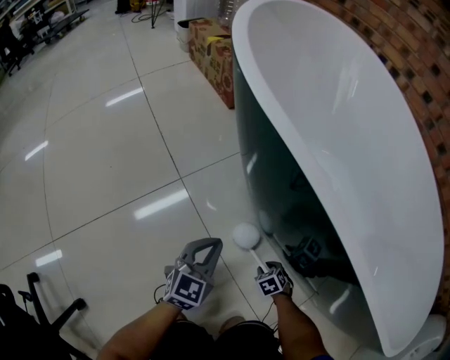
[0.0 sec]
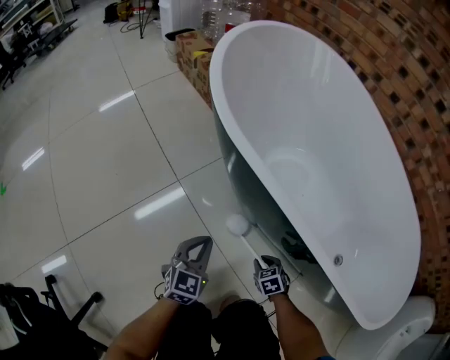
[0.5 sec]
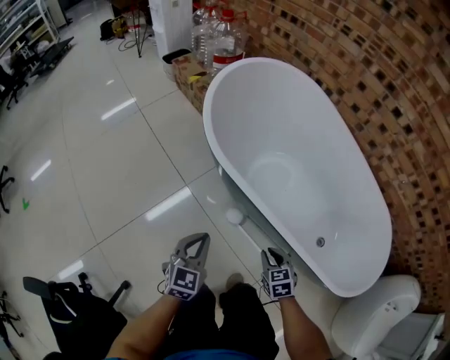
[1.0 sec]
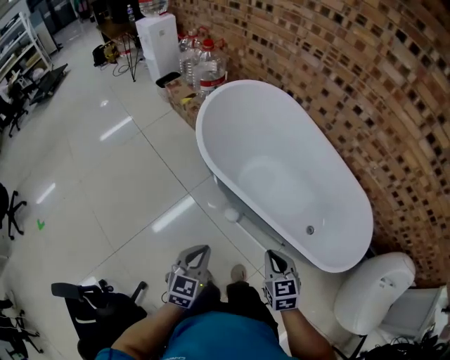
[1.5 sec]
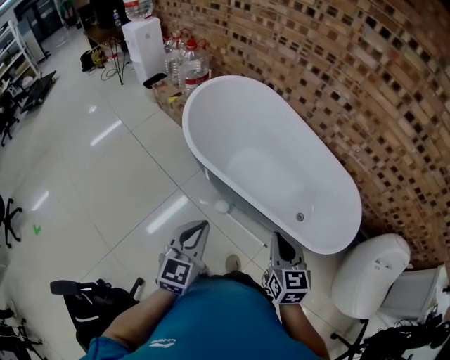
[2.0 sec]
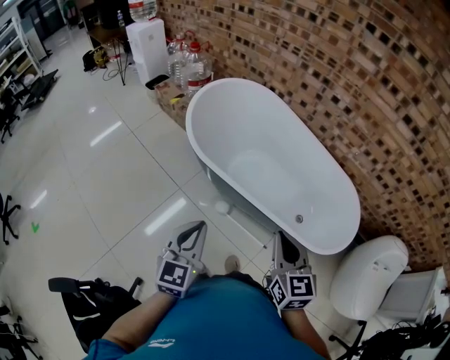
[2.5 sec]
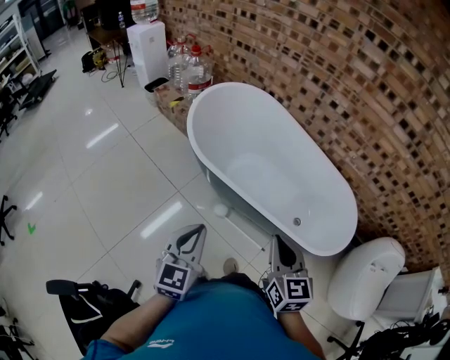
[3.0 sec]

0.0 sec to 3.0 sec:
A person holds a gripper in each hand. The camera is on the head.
0.0 sec to 1.5 sec: Both grippers travel together upward, some 70 cm. The right gripper tips its fingers upward by roughly 40 degrees, and closes.
1.5 sec to 3.0 sec: The two grippers go about 15 cm upward. The right gripper turns by about 20 degrees.

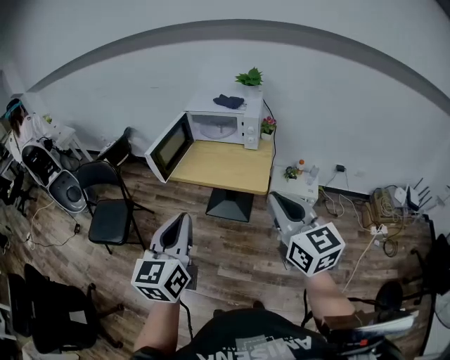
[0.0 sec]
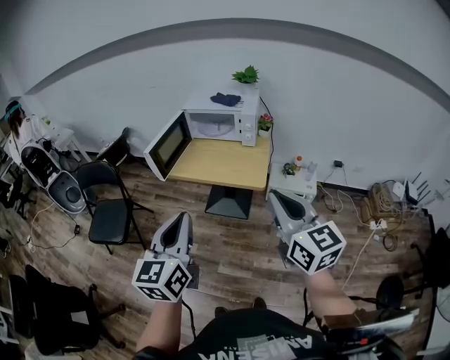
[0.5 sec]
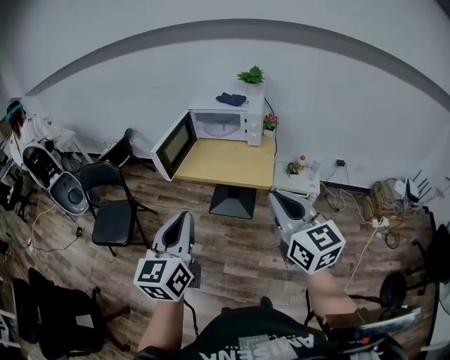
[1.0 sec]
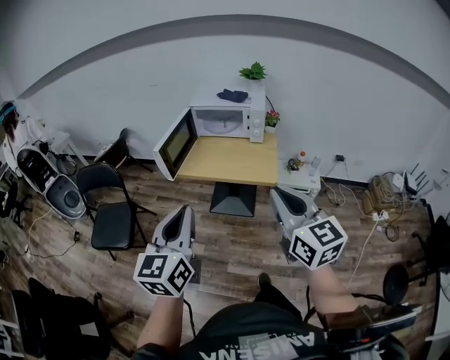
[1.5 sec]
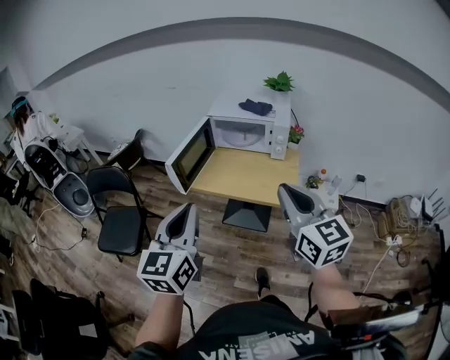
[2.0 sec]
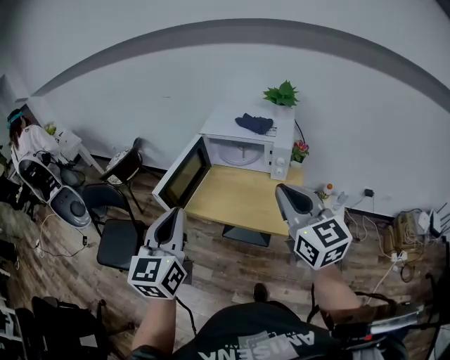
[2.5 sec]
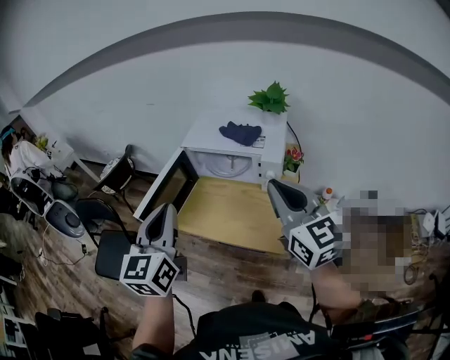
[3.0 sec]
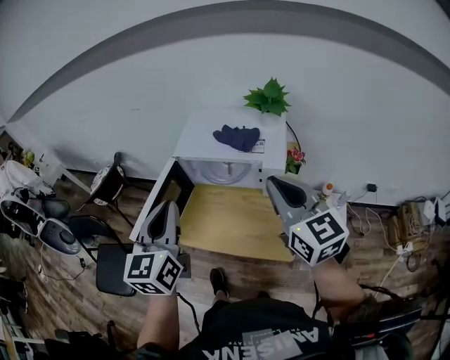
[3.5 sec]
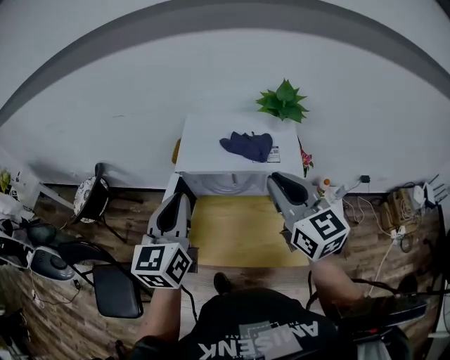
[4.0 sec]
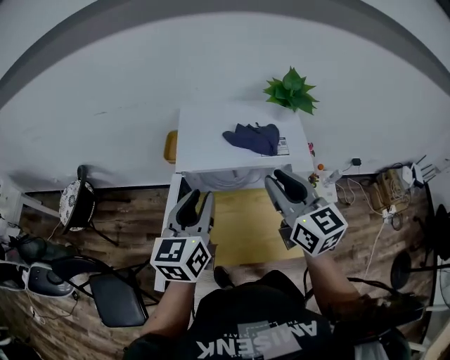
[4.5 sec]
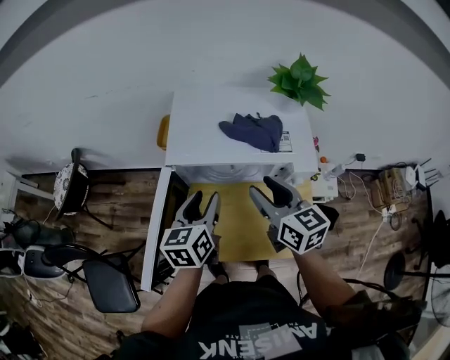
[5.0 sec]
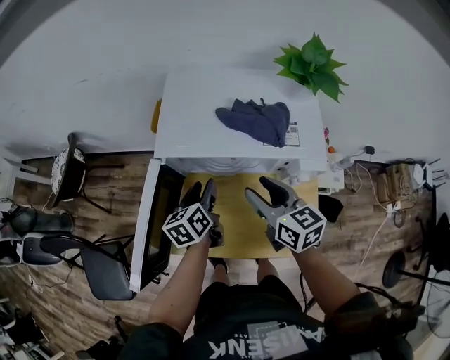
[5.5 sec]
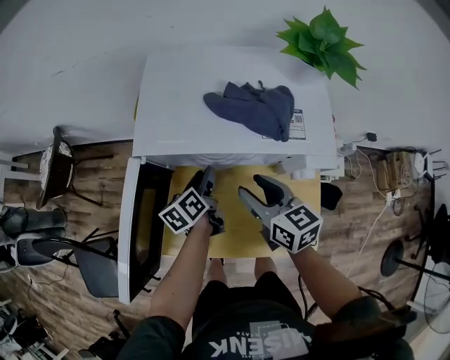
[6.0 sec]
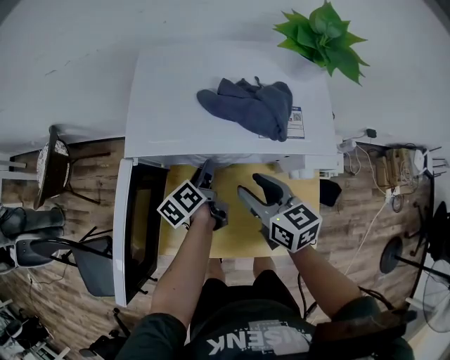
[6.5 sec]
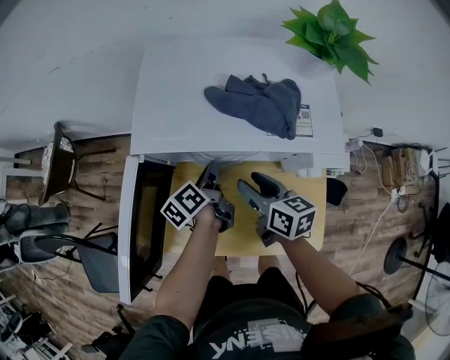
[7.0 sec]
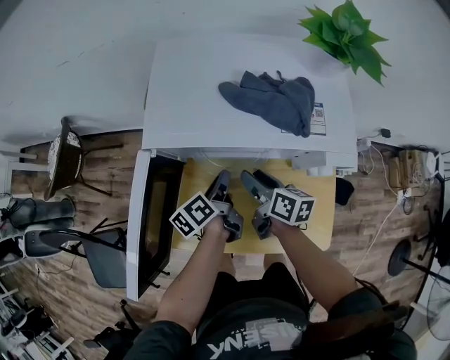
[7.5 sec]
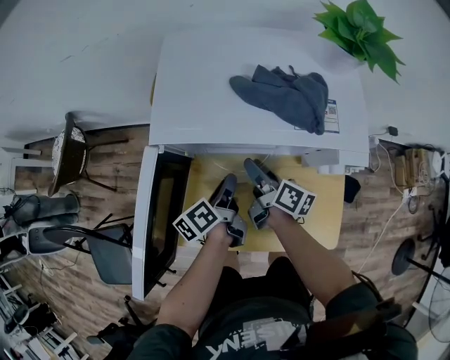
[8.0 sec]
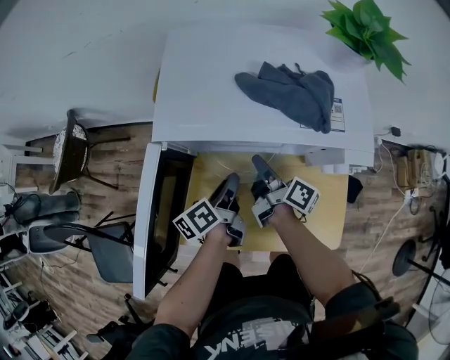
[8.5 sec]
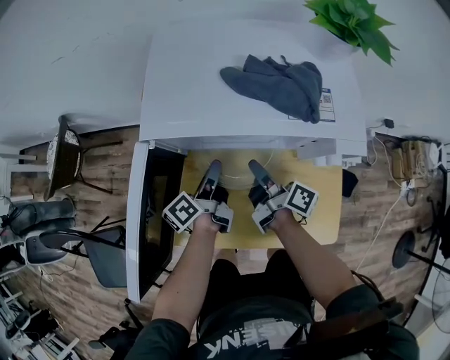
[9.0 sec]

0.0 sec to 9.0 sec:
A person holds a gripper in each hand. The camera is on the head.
0.0 sec to 2.0 sec: The two grippers go roughly 15 cm forward and to the left.
2.0 sec to 4.5 sec: The two grippers travel together, forward, roughly 50 cm. The left gripper rotates some 20 degrees, and opens its fingers.
4.5 sec to 7.0 sec: Both grippers move downward, about 30 cm. The left gripper rolls counterclockwise, seen from behind, by about 50 degrees; the right gripper rotates some 40 degrees, and opens up.
7.0 sec to 9.0 sec: The right gripper rotates around the line of its fingers by roughly 40 degrees, clockwise from behind, and closes.

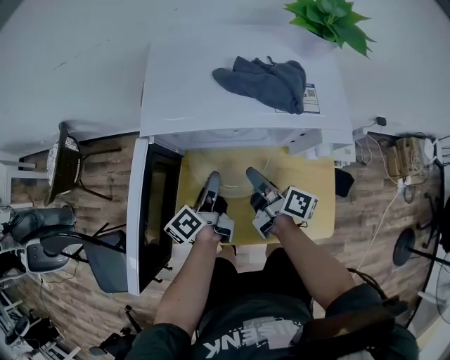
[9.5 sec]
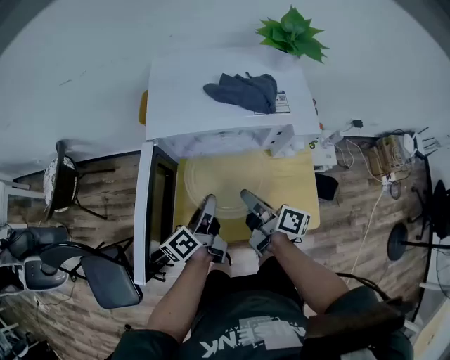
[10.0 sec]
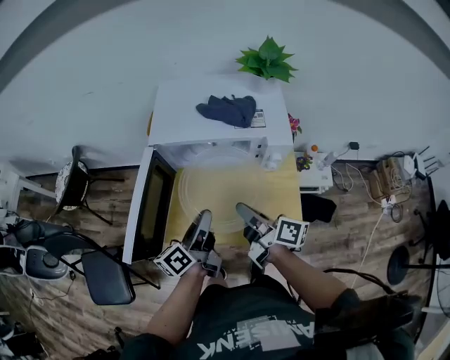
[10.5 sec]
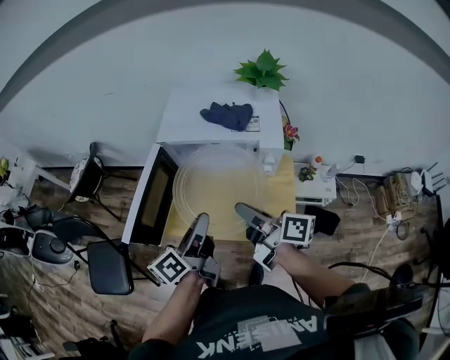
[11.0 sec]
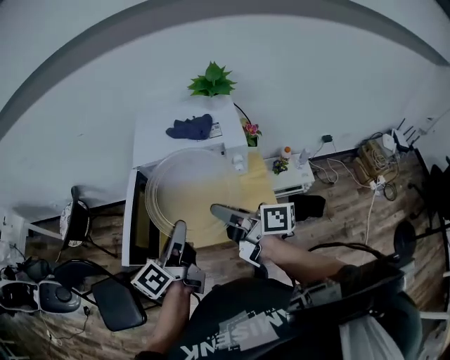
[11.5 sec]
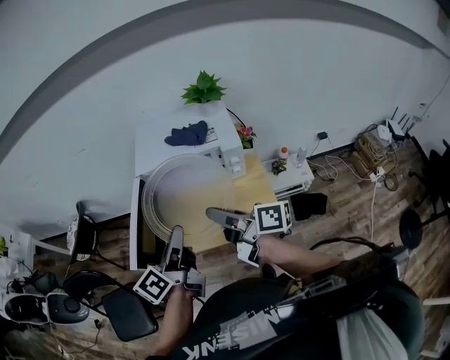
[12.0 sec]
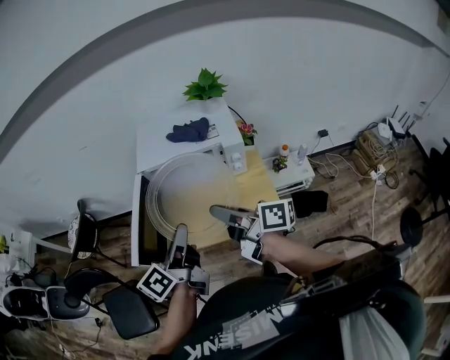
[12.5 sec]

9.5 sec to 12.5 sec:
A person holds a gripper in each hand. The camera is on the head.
9.5 sec to 11.0 sec: The left gripper heads backward and upward, covering approximately 30 cm, while the right gripper heads upward and backward, covering about 30 cm, and rotates approximately 20 degrees.
11.0 sec to 12.5 sec: The left gripper heads upward, covering some 10 cm. The right gripper moves upward, approximately 5 cm.

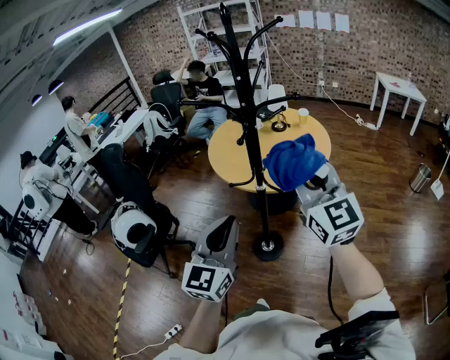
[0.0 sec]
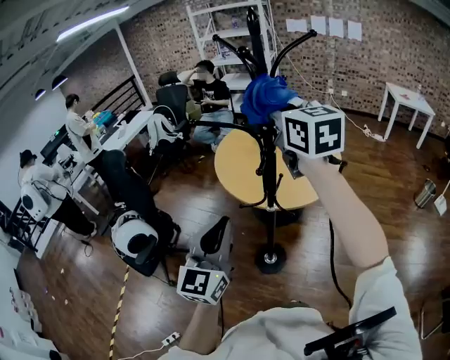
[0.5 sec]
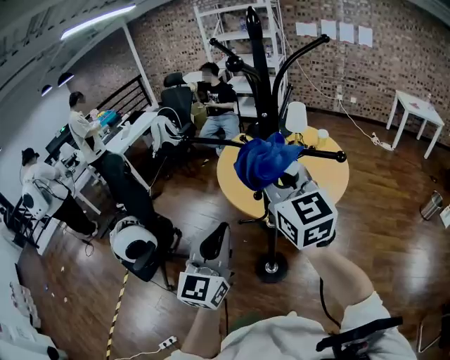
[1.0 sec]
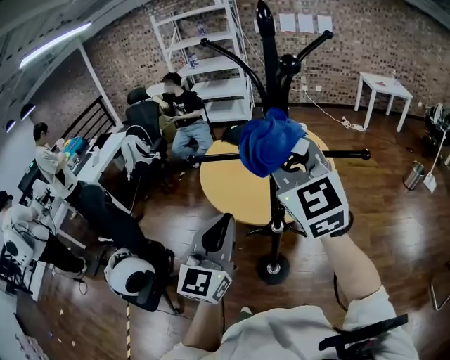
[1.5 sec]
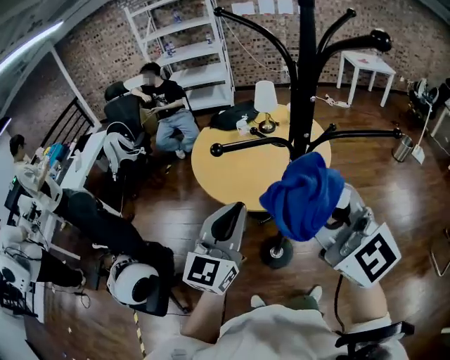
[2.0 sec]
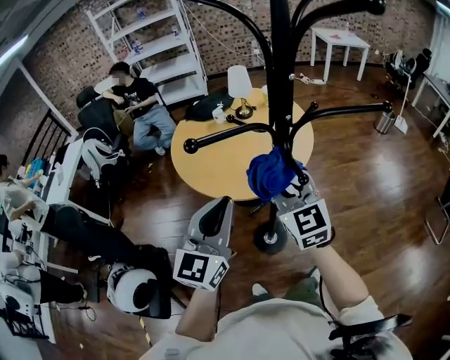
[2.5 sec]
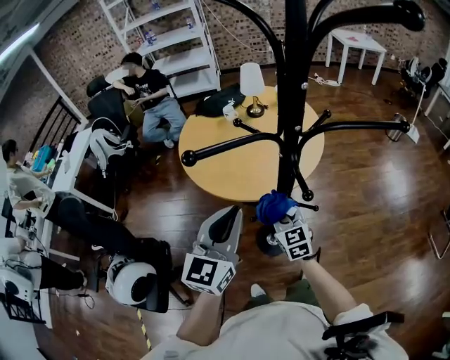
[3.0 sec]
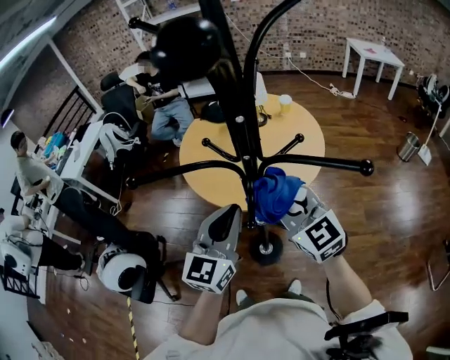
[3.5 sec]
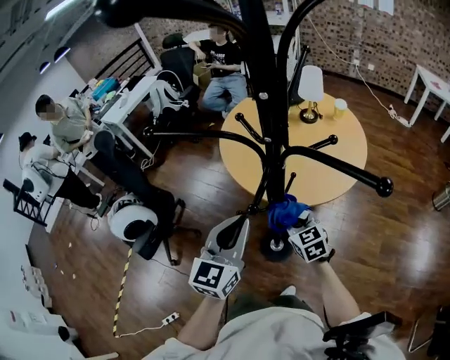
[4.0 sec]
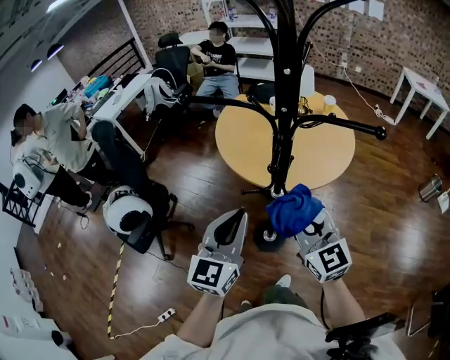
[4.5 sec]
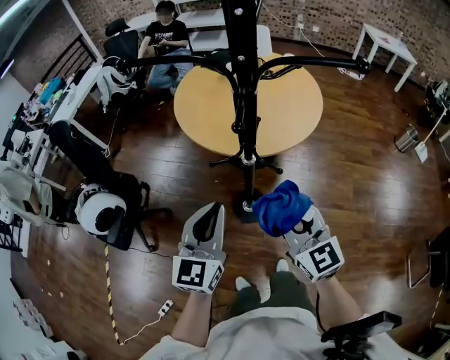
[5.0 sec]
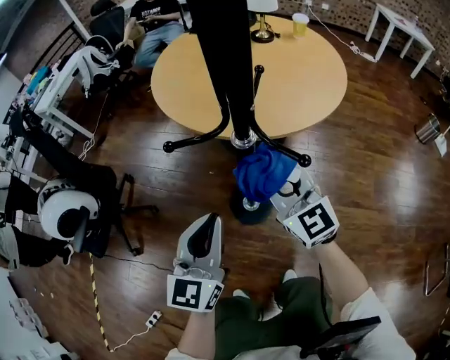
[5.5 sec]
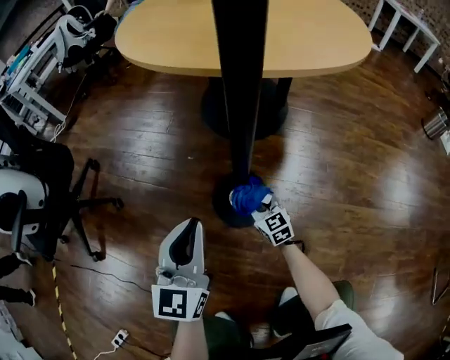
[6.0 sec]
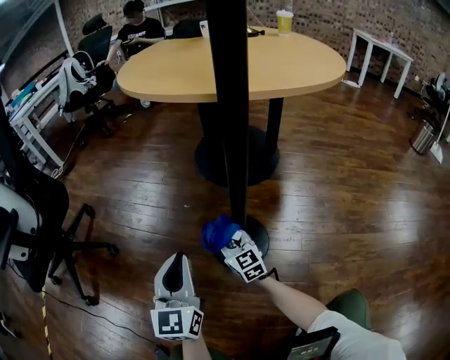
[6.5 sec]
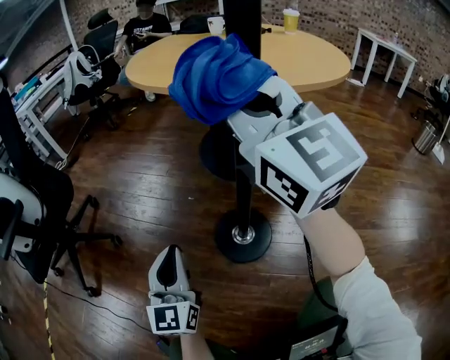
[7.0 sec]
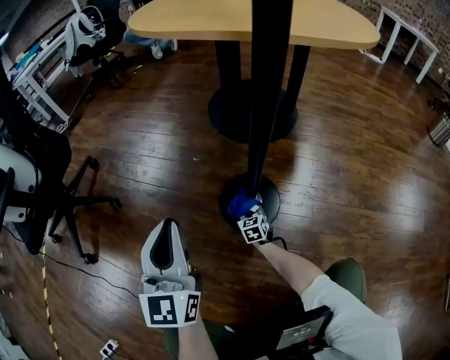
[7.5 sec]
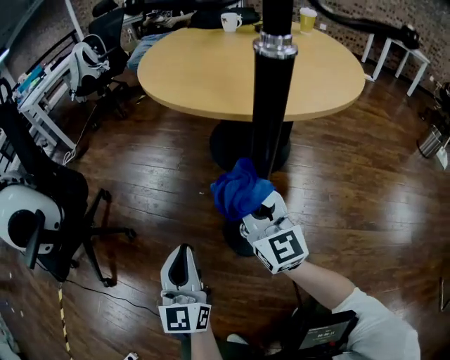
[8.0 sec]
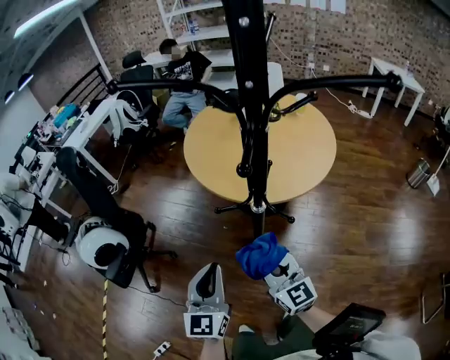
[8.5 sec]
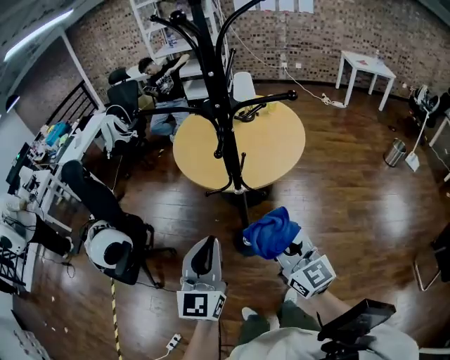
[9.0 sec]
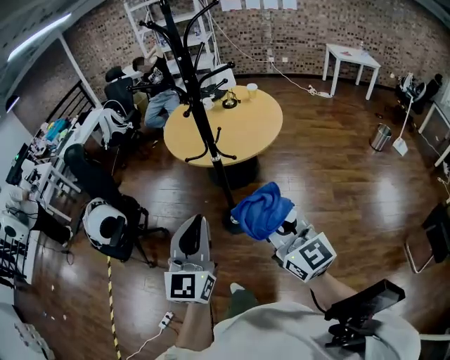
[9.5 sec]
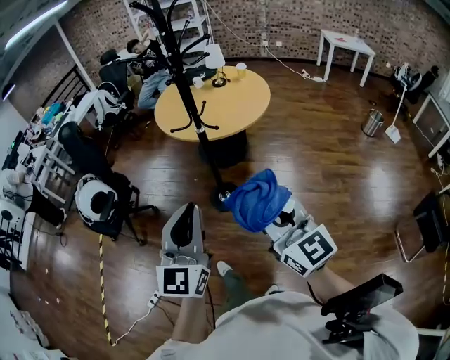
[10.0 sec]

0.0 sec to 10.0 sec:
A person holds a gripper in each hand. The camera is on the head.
0.0 sec to 2.0 sec: The right gripper heads to the left and forward, covering roughly 20 cm; the left gripper shifts some 30 cm forward and to the left, and swivels about 20 degrees.
2.0 sec to 4.0 sec: The right gripper goes up and down, about 40 cm each way, reversing 2 times, and points its fingers approximately 30 degrees further downward. The left gripper ends up approximately 15 cm from where it was, and swivels roughly 30 degrees.
4.0 sec to 6.0 sec: Both grippers travel together downward, about 60 cm.
6.0 sec to 8.0 sec: The right gripper goes up and down, approximately 70 cm each way, reversing 2 times, and angles its fingers upward, by about 30 degrees. The left gripper heads to the left, covering approximately 10 cm, and goes downward and returns, approximately 10 cm each way.
8.0 sec to 10.0 sec: The pair of grippers is taken backward, roughly 50 cm. The grippers both shift upward by about 60 cm.

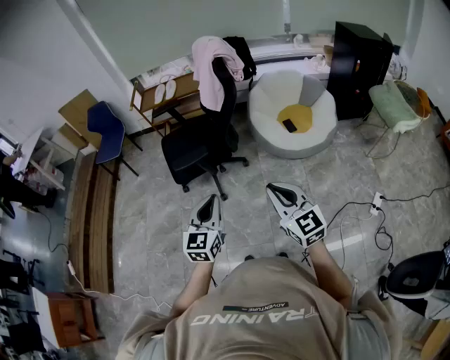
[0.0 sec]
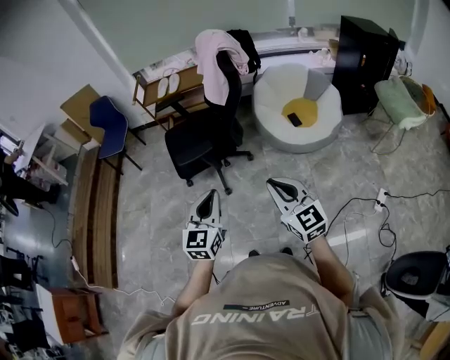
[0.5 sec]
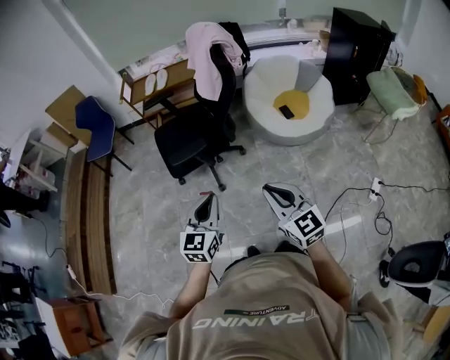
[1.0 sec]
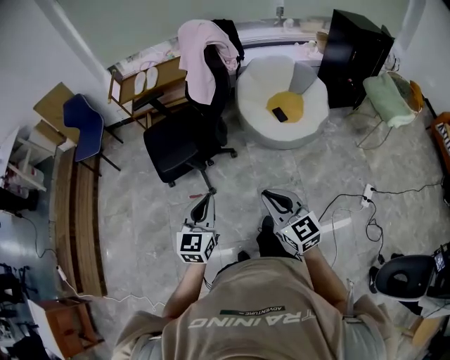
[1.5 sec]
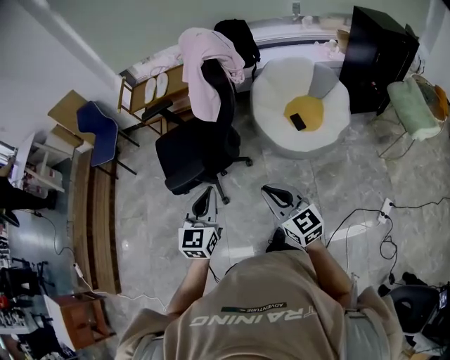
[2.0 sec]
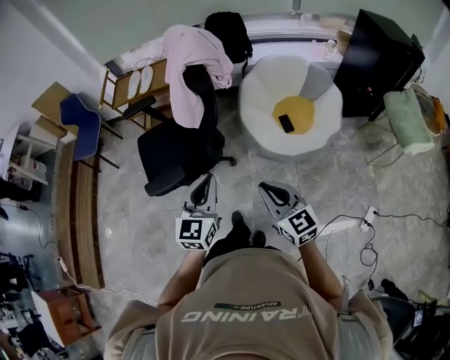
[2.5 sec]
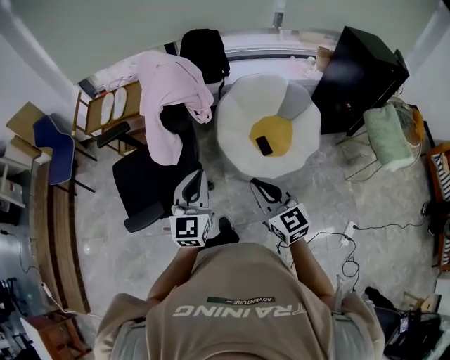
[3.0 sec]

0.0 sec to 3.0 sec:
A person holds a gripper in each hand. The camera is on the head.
0.0 sec to 1.5 sec: The right gripper travels forward and downward by about 10 cm. The left gripper heads forward, covering roughly 10 cm.
1.5 sec to 3.0 sec: Both grippers travel together forward and to the right, some 40 cm.
